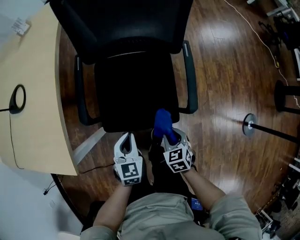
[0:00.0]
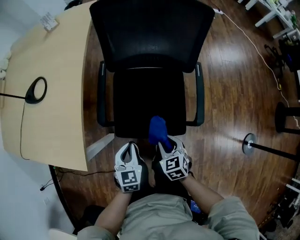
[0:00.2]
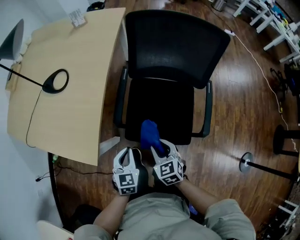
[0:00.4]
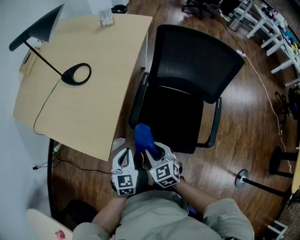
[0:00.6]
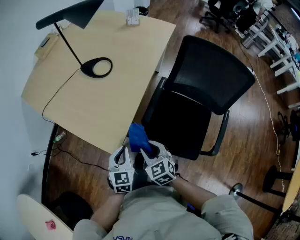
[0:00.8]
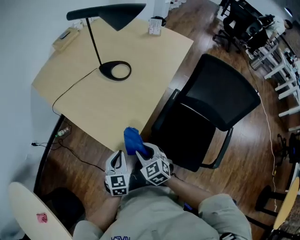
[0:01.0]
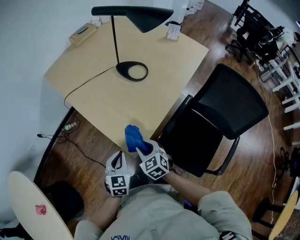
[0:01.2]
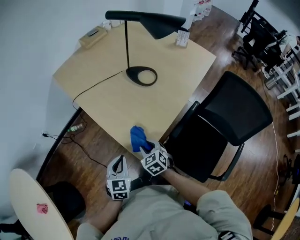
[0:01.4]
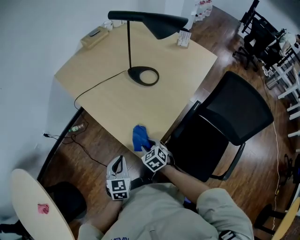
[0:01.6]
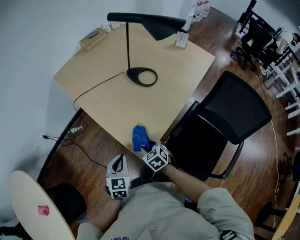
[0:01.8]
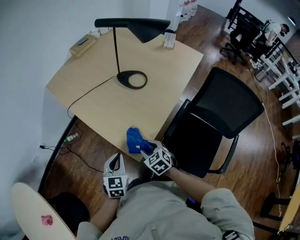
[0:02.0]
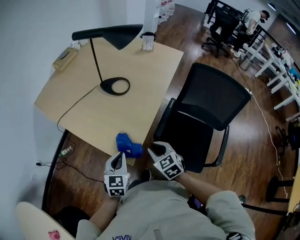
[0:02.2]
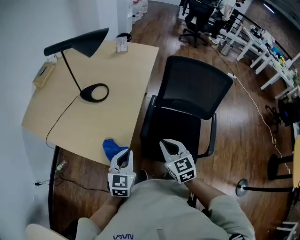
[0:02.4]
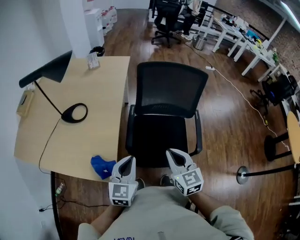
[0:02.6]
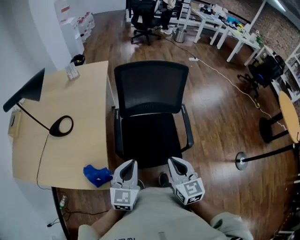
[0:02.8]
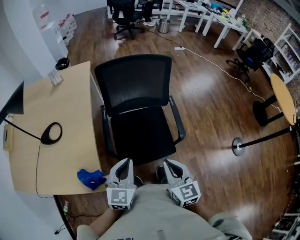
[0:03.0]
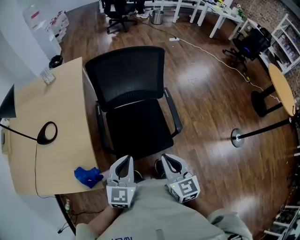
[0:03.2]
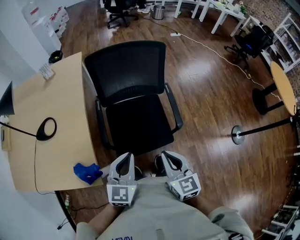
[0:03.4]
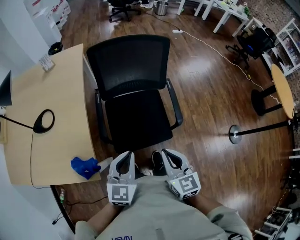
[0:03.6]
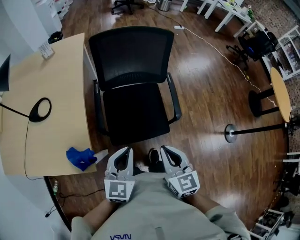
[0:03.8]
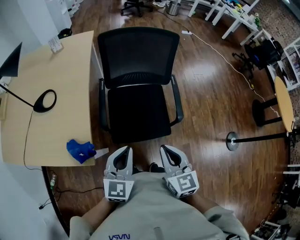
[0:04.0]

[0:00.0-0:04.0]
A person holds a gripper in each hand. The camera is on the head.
0:00.0 to 0:01.4: The two grippers travel together, approximately 50 cm. The left gripper swivels some 50 degrees. Meanwhile the right gripper turns by approximately 60 degrees.
0:01.4 to 0:02.6: The left gripper shifts by approximately 30 cm, and changes its angle by approximately 50 degrees, while the right gripper changes place by approximately 35 cm, turns by approximately 60 degrees, and closes up.
0:02.6 to 0:04.0: The left gripper is displaced to the right by about 15 cm; the right gripper is displaced to the right and backward by about 15 cm.

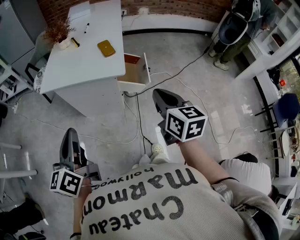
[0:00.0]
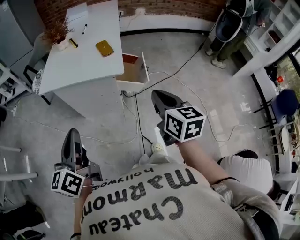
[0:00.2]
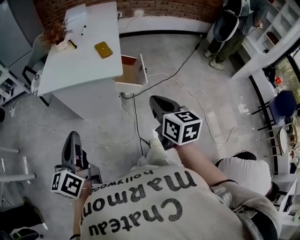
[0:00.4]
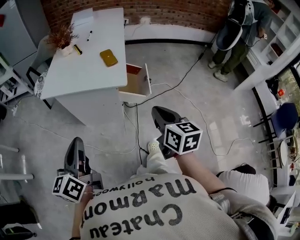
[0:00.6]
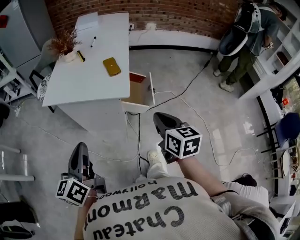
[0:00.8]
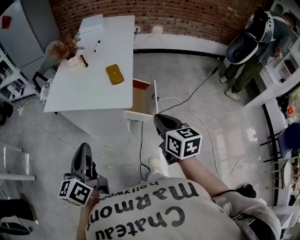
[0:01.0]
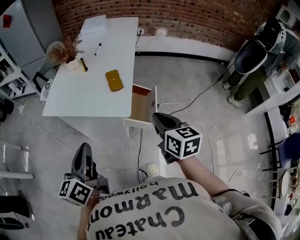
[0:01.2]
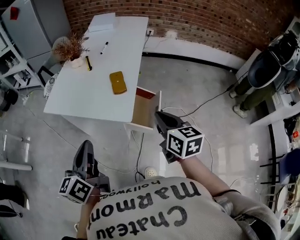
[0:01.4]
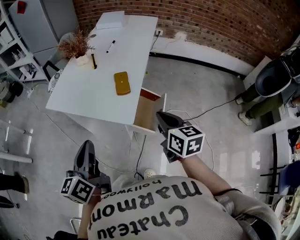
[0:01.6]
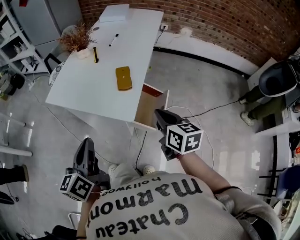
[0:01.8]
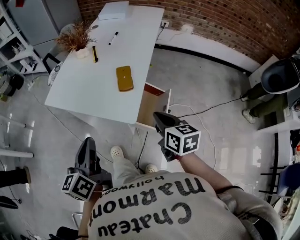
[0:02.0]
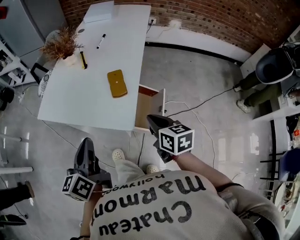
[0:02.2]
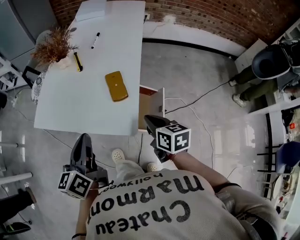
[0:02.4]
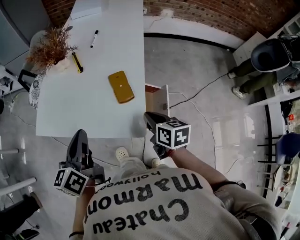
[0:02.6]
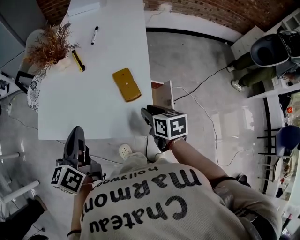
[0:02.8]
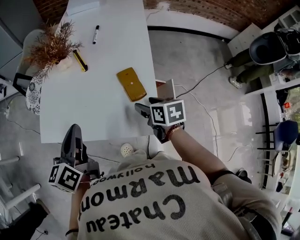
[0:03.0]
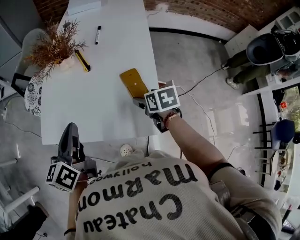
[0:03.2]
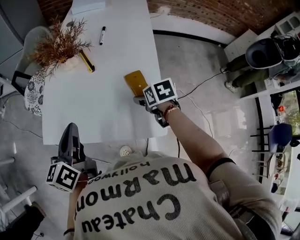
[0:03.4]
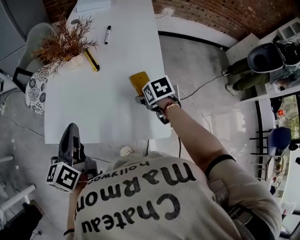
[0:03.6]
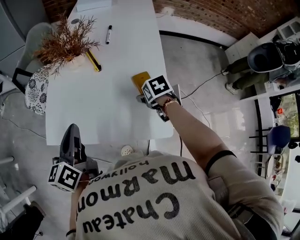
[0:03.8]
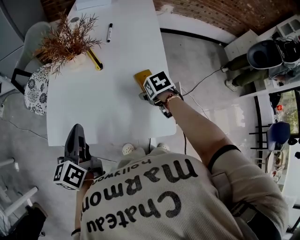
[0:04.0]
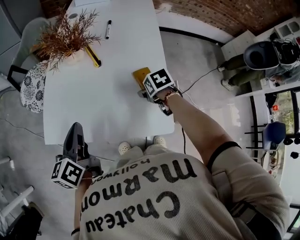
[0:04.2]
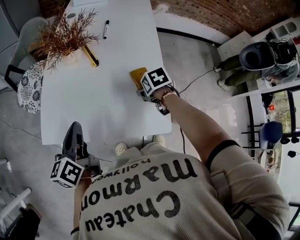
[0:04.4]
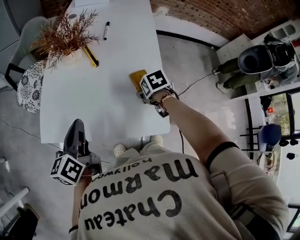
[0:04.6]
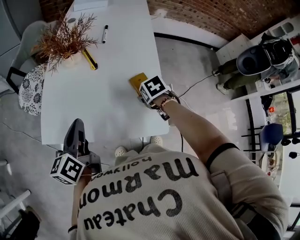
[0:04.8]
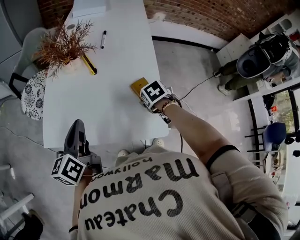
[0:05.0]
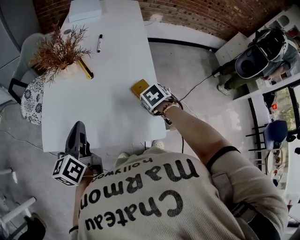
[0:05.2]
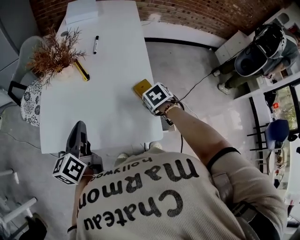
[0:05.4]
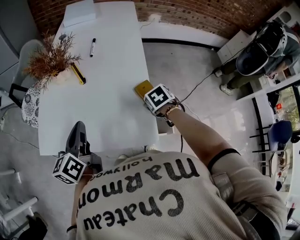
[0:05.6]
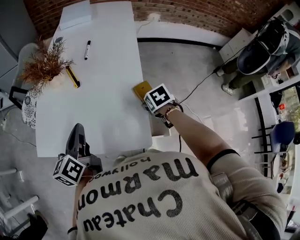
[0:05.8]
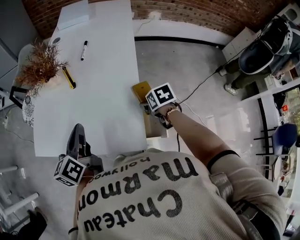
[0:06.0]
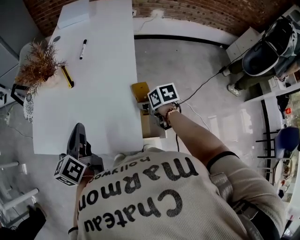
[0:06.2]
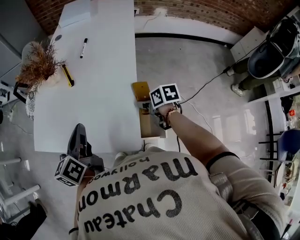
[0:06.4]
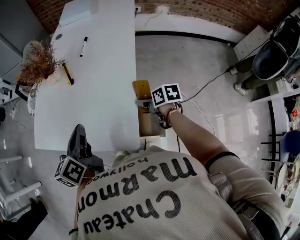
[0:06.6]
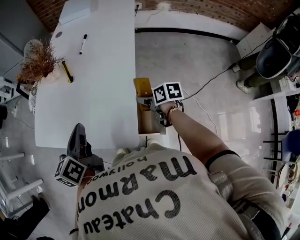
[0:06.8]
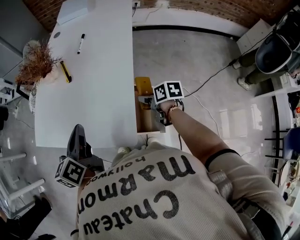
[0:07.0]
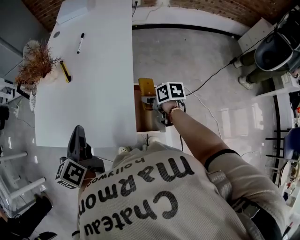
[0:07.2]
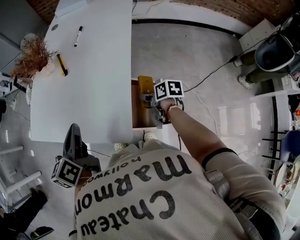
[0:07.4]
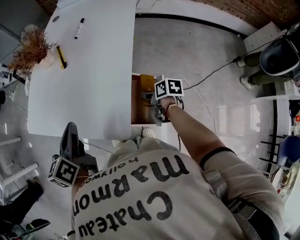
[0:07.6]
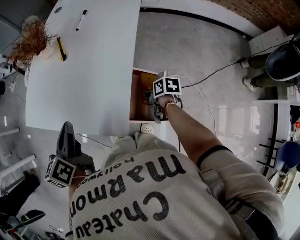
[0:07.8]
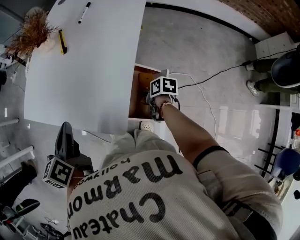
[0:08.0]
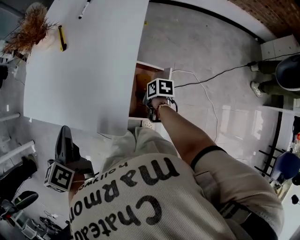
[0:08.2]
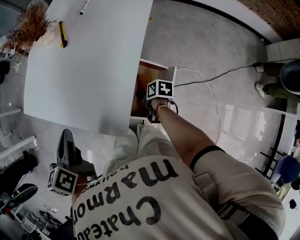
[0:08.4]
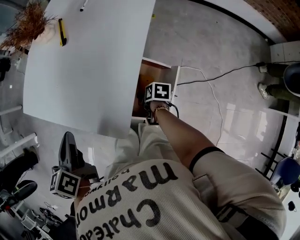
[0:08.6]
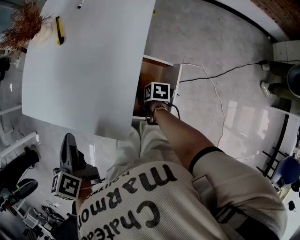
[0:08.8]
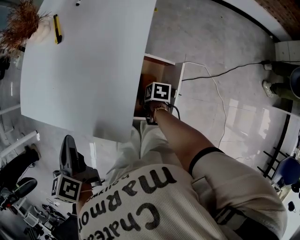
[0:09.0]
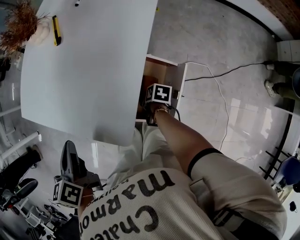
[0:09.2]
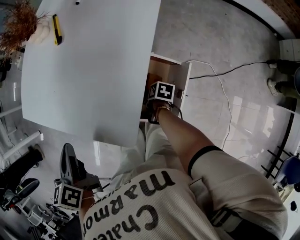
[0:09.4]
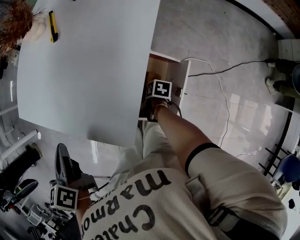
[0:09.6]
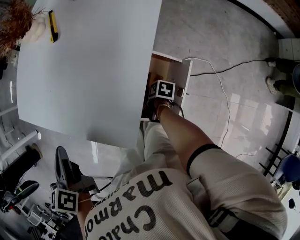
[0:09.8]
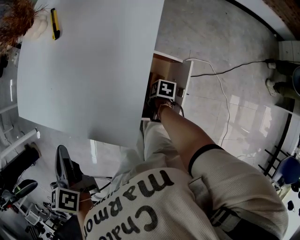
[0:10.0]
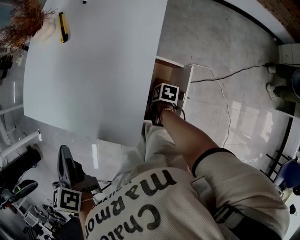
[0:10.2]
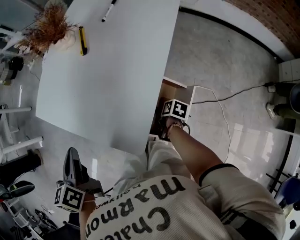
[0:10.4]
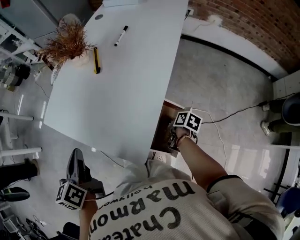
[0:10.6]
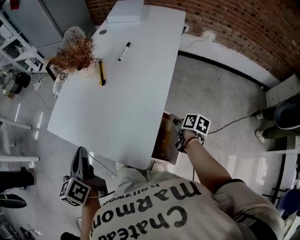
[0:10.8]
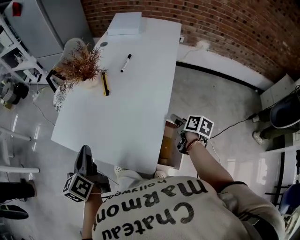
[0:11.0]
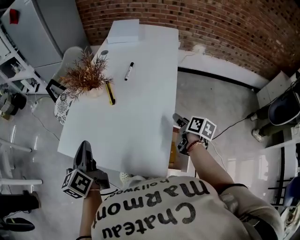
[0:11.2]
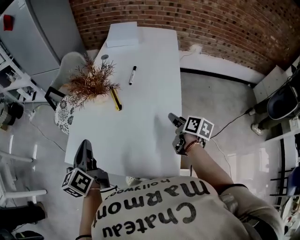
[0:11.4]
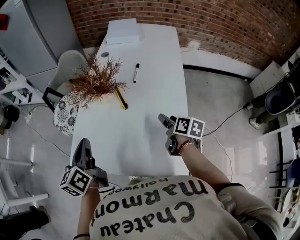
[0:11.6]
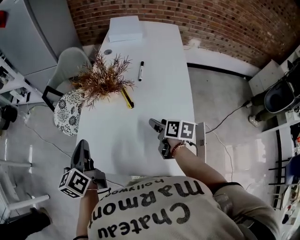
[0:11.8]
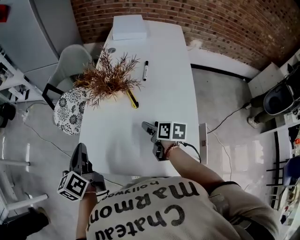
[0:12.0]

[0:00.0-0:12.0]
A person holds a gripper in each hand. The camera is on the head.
0:00.0 to 0:01.6: The left gripper goes roughly 20 cm forward and to the right. Meanwhile the right gripper goes approximately 25 cm forward, and rotates approximately 20 degrees.
0:01.6 to 0:03.0: The left gripper heads forward and to the left, covering roughly 30 cm. Meanwhile the right gripper moves forward, downward and to the left, approximately 25 cm, rotates roughly 30 degrees, and opens.
0:03.0 to 0:04.4: The right gripper moves approximately 10 cm, and rotates roughly 30 degrees. Meanwhile the left gripper changes place by approximately 10 cm.
0:04.4 to 0:06.0: The right gripper shifts by about 15 cm. Meanwhile the left gripper moves about 15 cm.
0:06.0 to 0:07.6: The right gripper goes approximately 10 cm downward, and swivels approximately 30 degrees. The left gripper is displaced backward by about 5 cm.
0:07.6 to 0:09.0: The right gripper goes about 15 cm downward and to the left. Meanwhile the left gripper travels downward by approximately 5 cm, and turns by roughly 20 degrees.
0:09.0 to 0:10.4: The grippers make only small movements.
0:10.4 to 0:12.0: The right gripper shifts by roughly 40 cm, and changes its angle by some 30 degrees. The left gripper changes place by about 35 cm, and changes its angle by roughly 20 degrees.

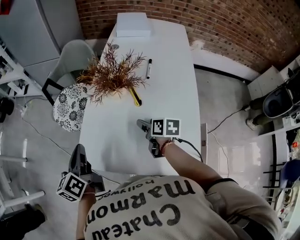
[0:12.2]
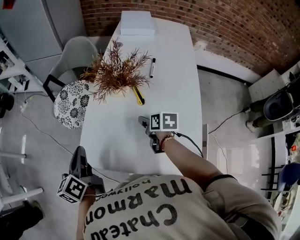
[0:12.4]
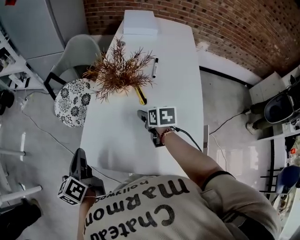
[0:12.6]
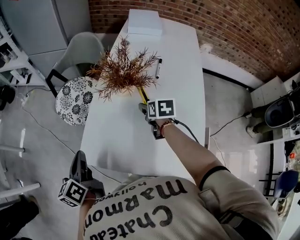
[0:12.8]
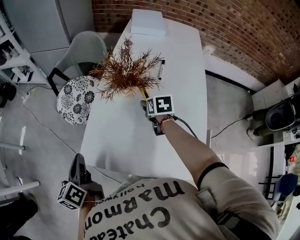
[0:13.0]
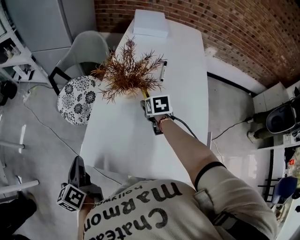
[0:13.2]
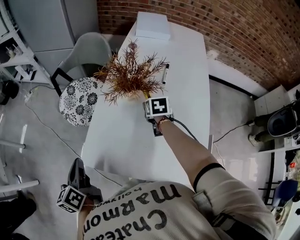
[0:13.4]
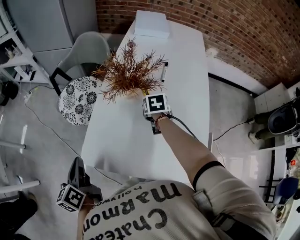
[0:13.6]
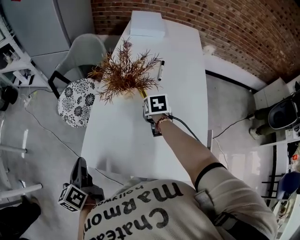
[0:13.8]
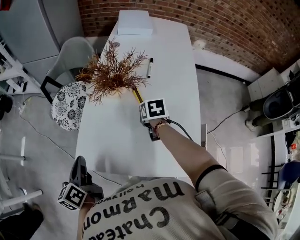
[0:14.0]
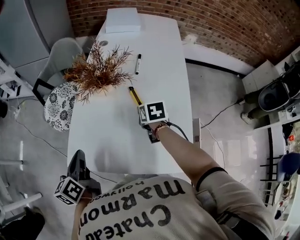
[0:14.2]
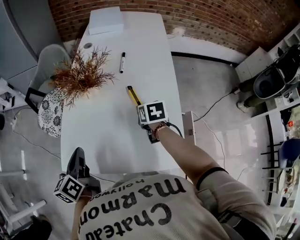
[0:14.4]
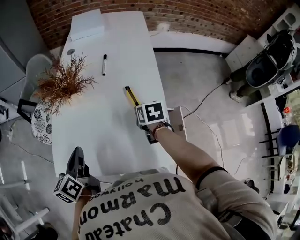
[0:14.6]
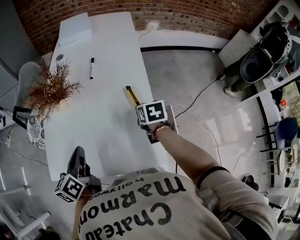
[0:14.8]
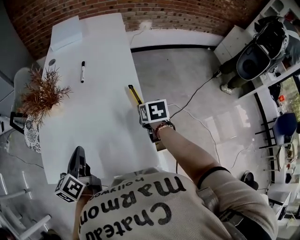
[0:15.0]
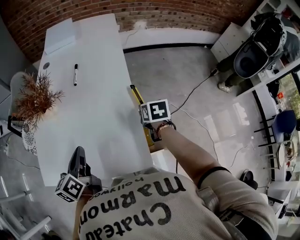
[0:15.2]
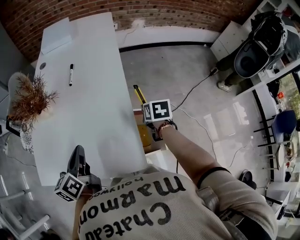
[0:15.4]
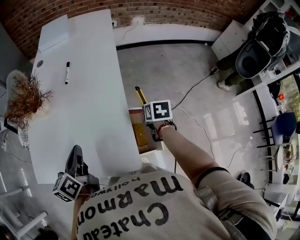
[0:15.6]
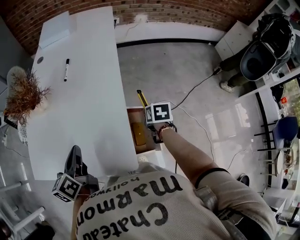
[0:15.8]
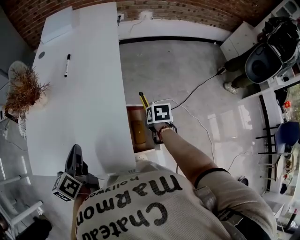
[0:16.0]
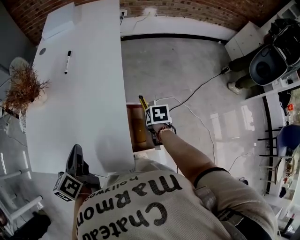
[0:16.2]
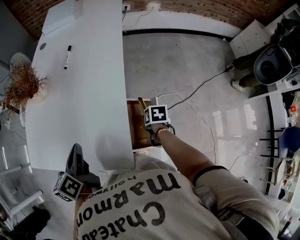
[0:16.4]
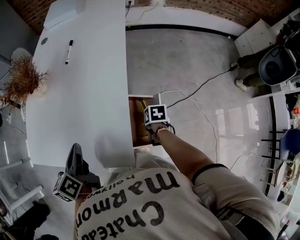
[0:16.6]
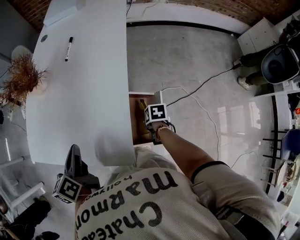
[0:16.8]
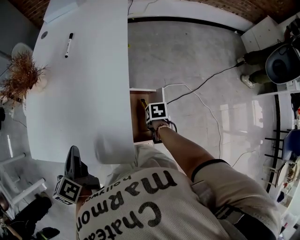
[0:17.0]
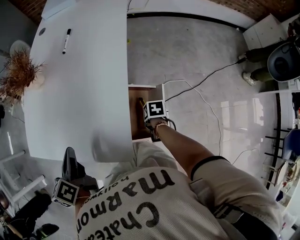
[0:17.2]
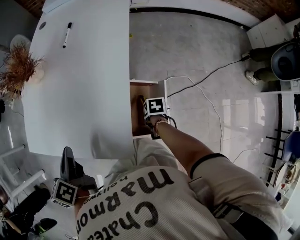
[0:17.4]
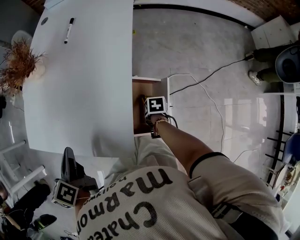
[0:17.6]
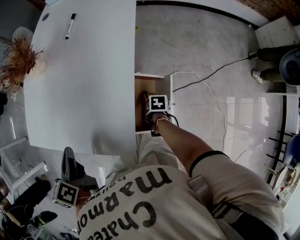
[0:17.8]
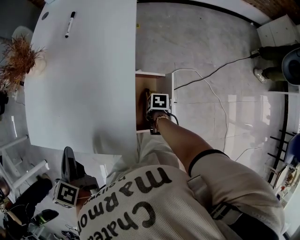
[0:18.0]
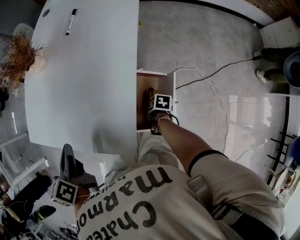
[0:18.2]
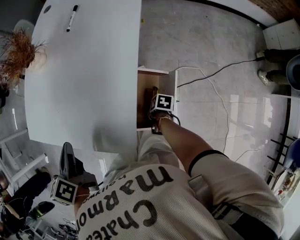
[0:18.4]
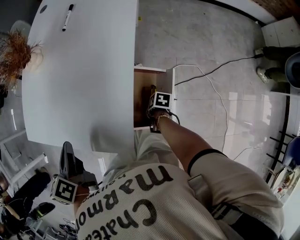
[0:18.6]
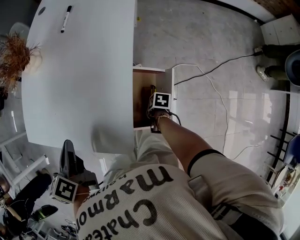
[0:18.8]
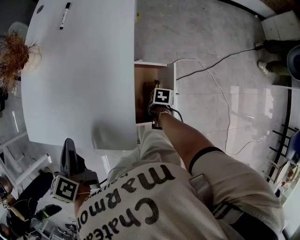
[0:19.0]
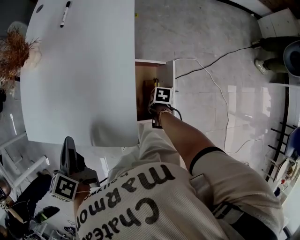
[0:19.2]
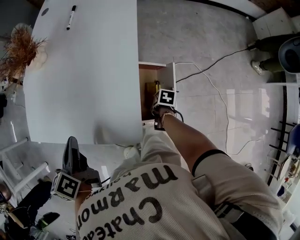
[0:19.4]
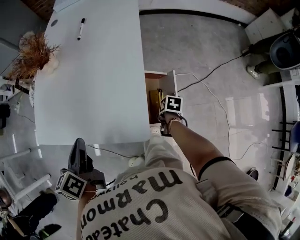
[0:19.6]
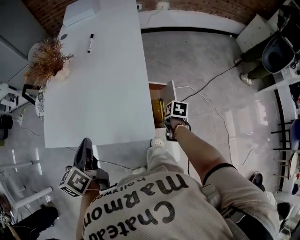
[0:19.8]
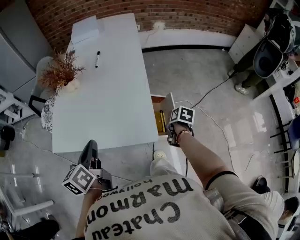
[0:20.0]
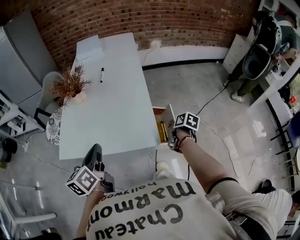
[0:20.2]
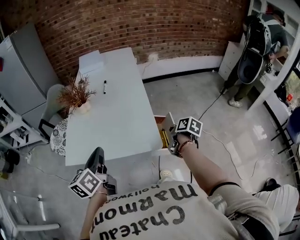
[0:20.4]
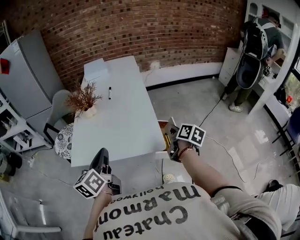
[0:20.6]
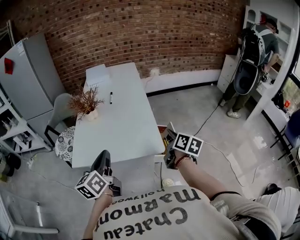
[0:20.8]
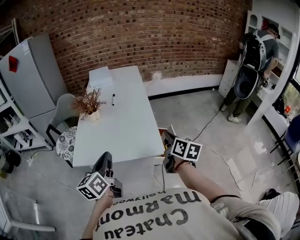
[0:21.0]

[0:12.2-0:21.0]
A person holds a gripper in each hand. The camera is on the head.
0:12.2 to 0:13.6: The right gripper goes some 15 cm forward, rotates roughly 30 degrees, and closes up. The left gripper is displaced to the left by approximately 5 cm.
0:13.6 to 0:15.2: The right gripper travels to the right and backward by about 40 cm, and turns by about 20 degrees, while the left gripper travels to the right by roughly 35 cm, and swivels approximately 30 degrees.
0:15.2 to 0:16.6: The left gripper heads to the right, covering roughly 5 cm; the right gripper goes about 20 cm downward and backward, and turns by approximately 20 degrees.
0:16.6 to 0:18.0: The right gripper is displaced downward by approximately 10 cm. Meanwhile the left gripper changes place by about 5 cm.
0:18.0 to 0:19.6: The right gripper ends up roughly 5 cm from where it was.
0:19.6 to 0:21.0: The right gripper shifts about 40 cm upward, and tips its fingers upward by about 60 degrees, while the left gripper goes approximately 15 cm upward, and rotates some 30 degrees.
